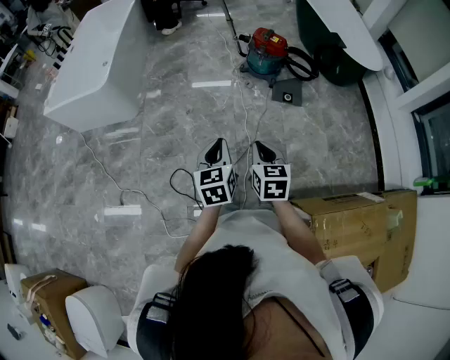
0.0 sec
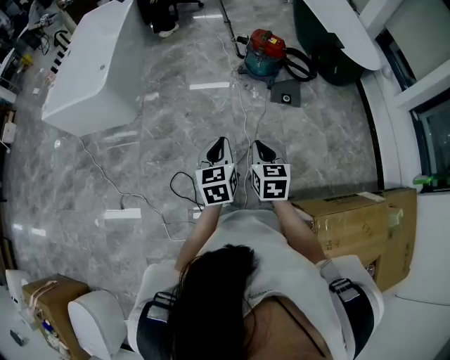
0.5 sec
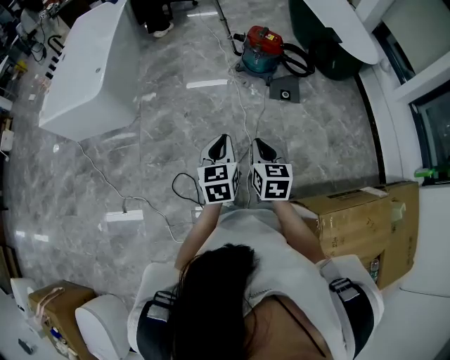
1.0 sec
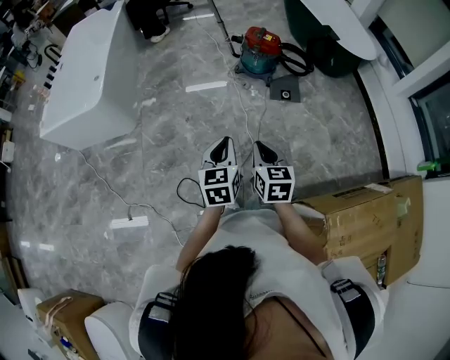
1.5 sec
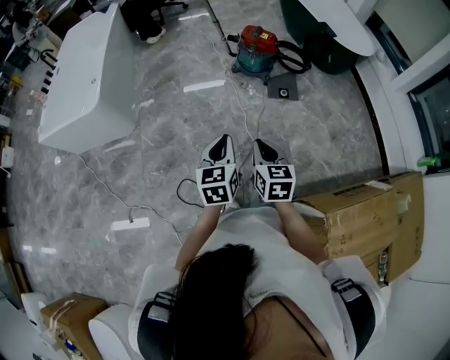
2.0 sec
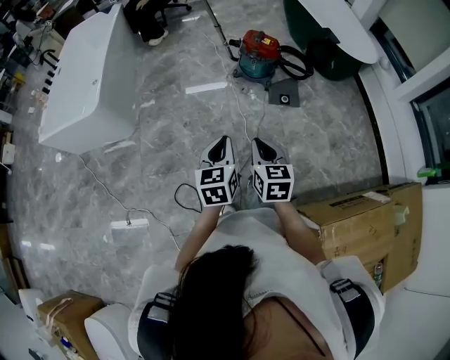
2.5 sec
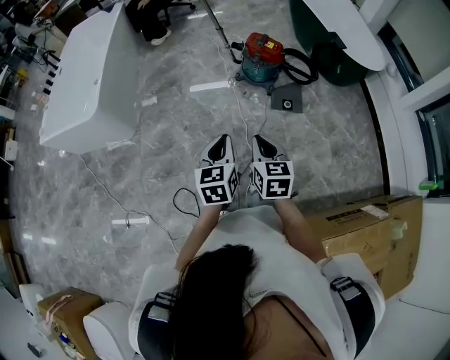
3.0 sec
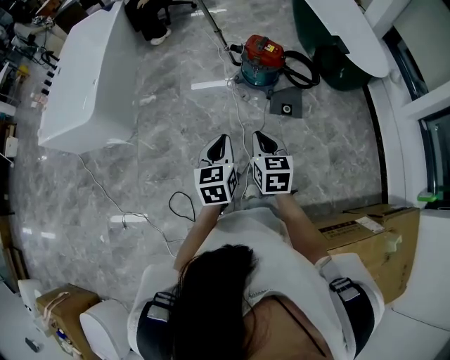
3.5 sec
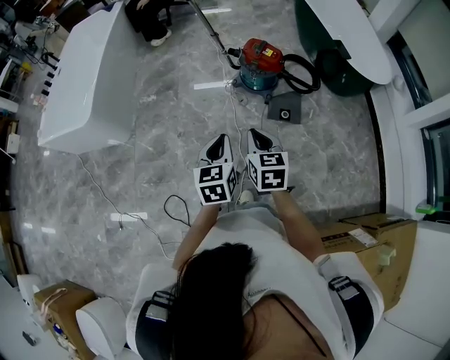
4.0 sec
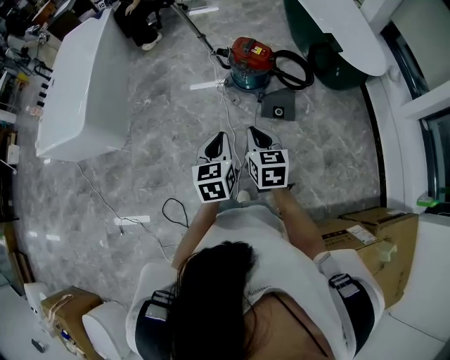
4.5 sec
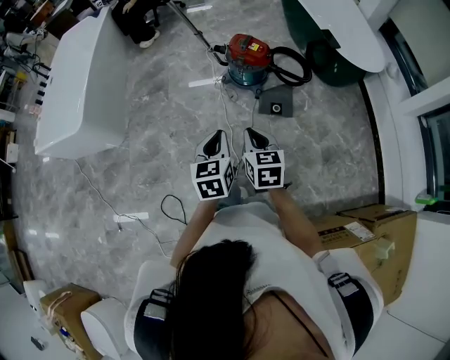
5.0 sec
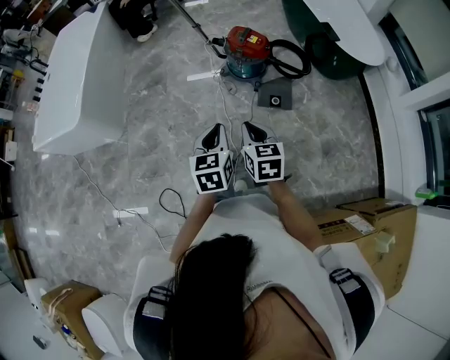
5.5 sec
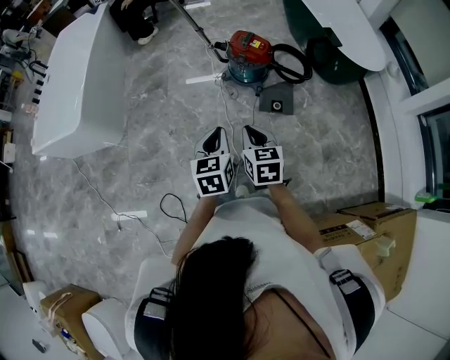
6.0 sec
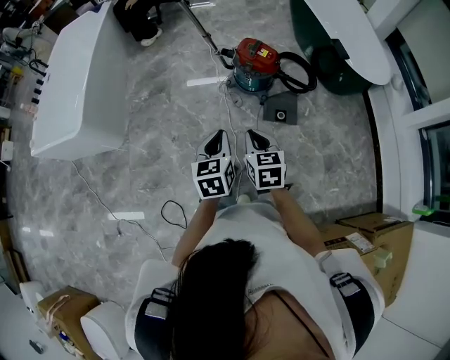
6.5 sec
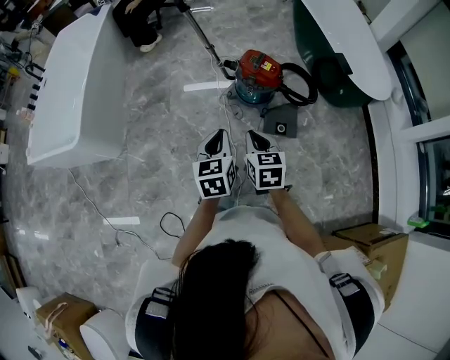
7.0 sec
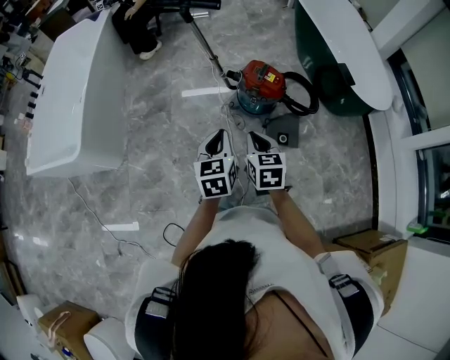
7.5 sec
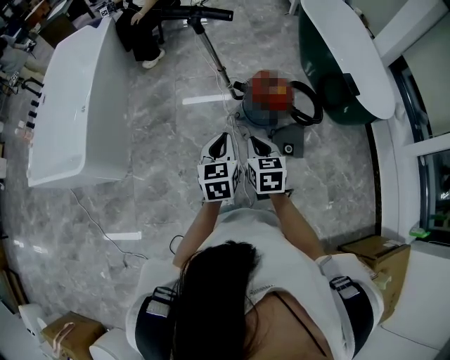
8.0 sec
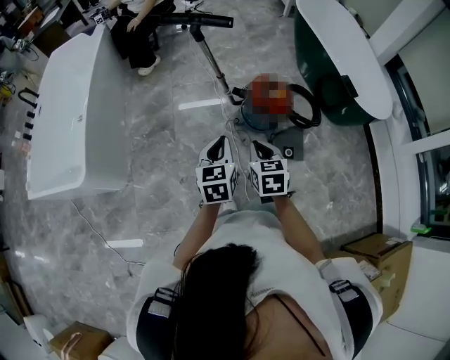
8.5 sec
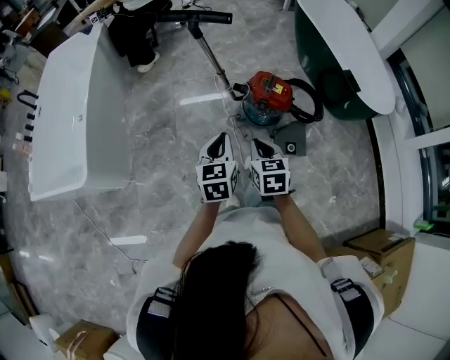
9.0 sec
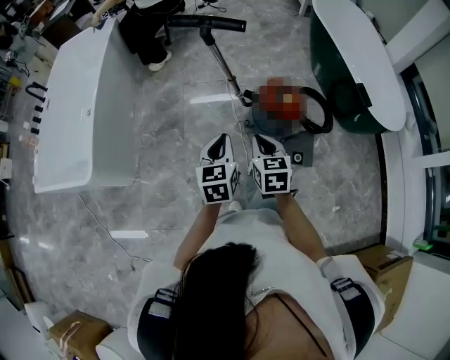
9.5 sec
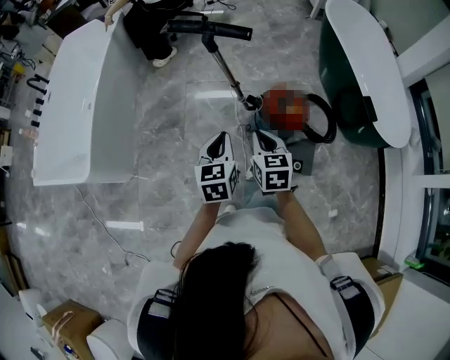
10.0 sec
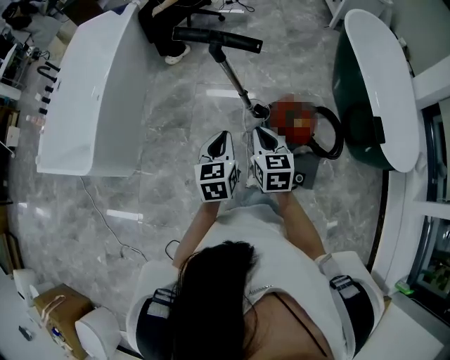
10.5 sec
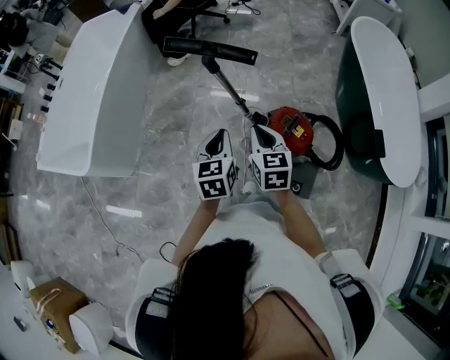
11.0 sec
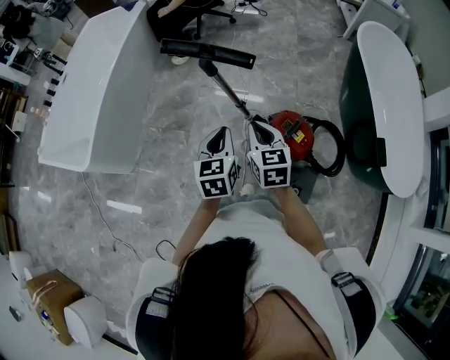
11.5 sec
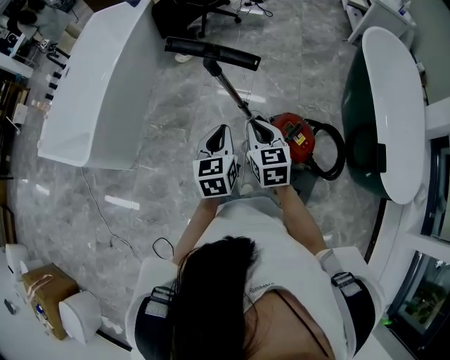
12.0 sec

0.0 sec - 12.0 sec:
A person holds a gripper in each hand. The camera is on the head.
0.0 sec - 2.0 sec: The left gripper is displaced forward by roughly 5 cm. The right gripper changes place by approximately 5 cm.
2.0 sec - 4.0 sec: Both grippers travel together forward and to the right, roughly 25 cm.
4.0 sec - 6.0 sec: There are only small adjustments of the grippers.
6.0 sec - 8.0 sec: The grippers both shift forward and to the left by approximately 30 cm.
8.0 sec - 10.0 sec: The two grippers go roughly 15 cm forward.
10.0 sec - 12.0 sec: The left gripper heads forward and to the right, covering about 15 cm, while the right gripper shifts roughly 15 cm forward.

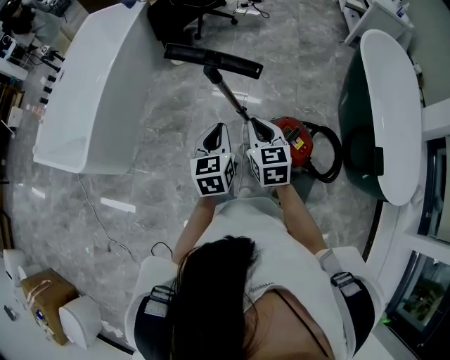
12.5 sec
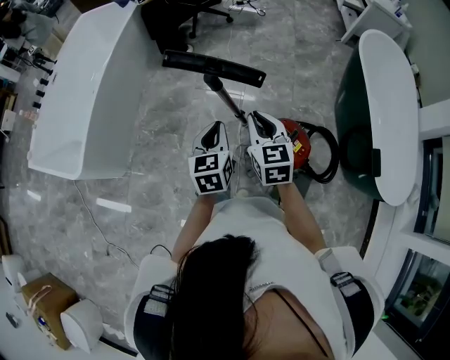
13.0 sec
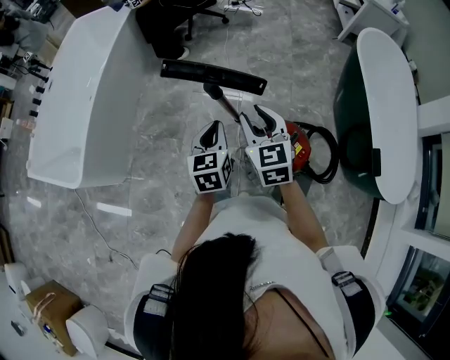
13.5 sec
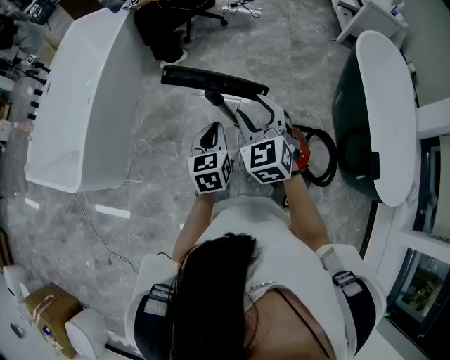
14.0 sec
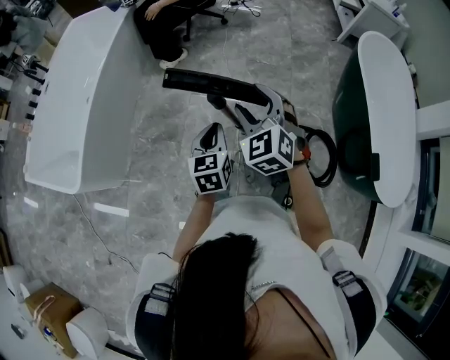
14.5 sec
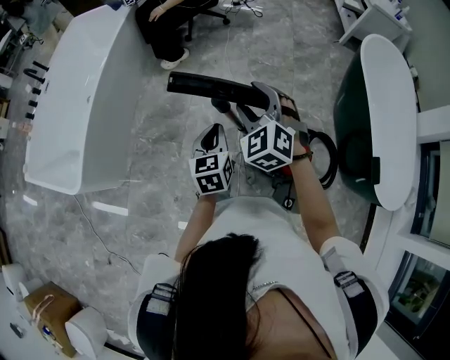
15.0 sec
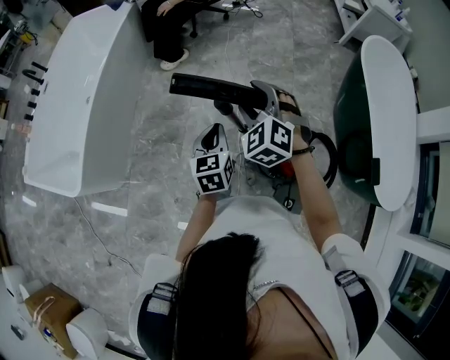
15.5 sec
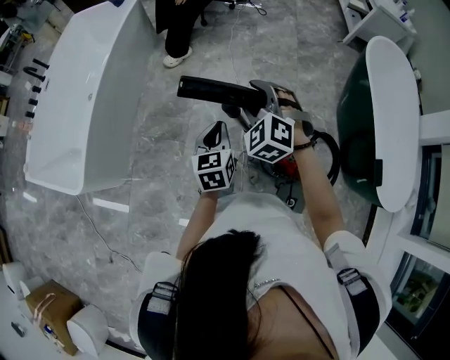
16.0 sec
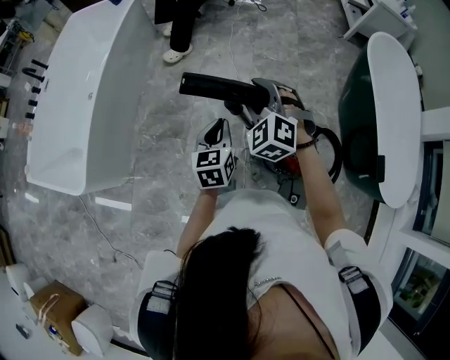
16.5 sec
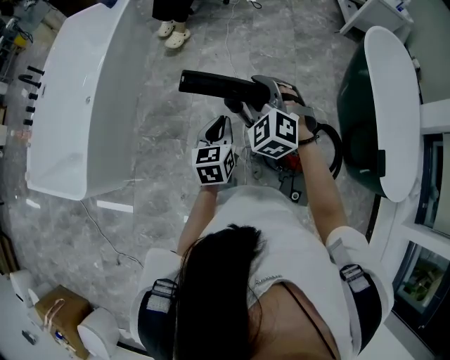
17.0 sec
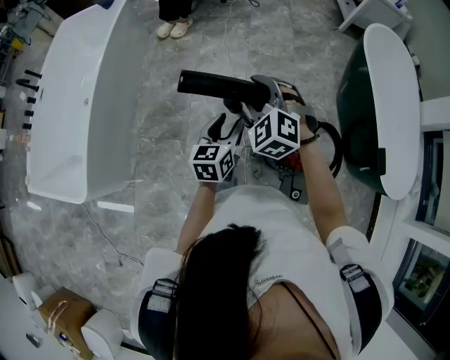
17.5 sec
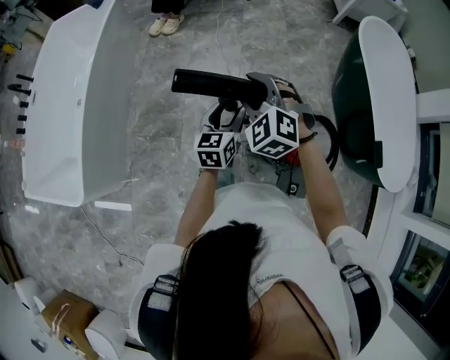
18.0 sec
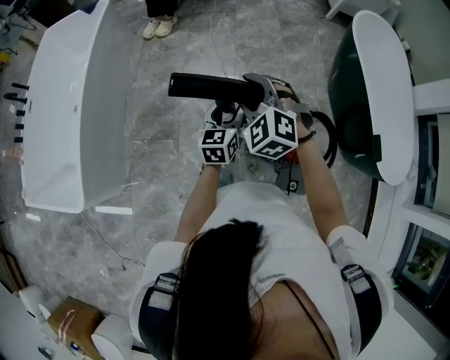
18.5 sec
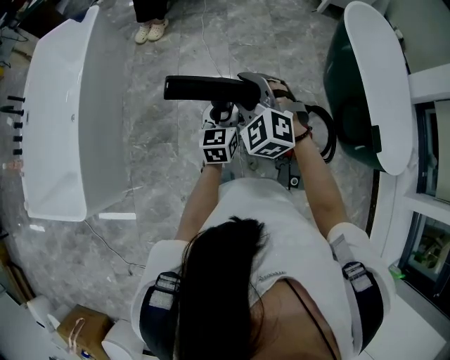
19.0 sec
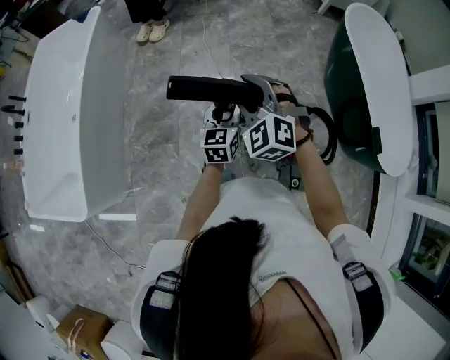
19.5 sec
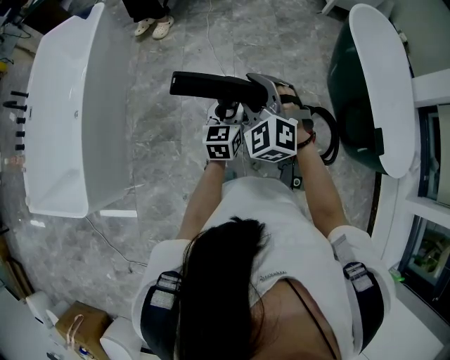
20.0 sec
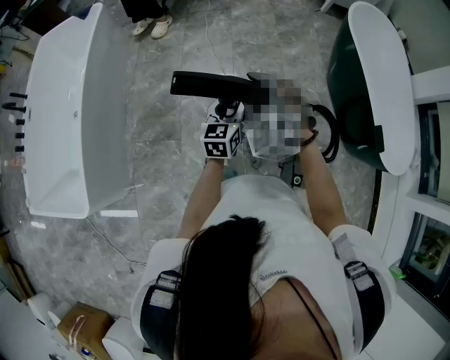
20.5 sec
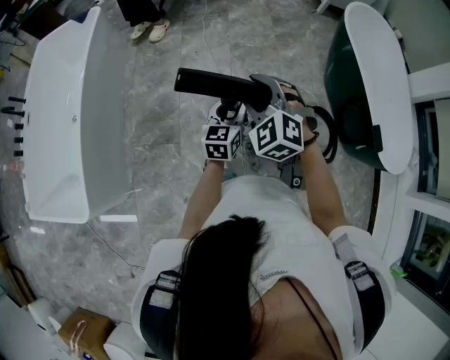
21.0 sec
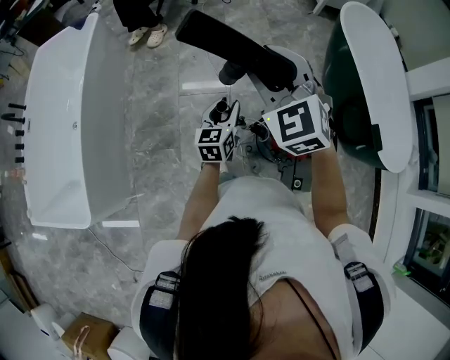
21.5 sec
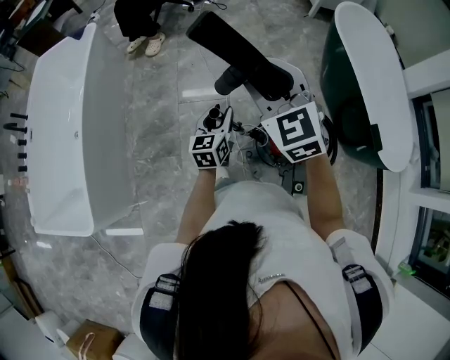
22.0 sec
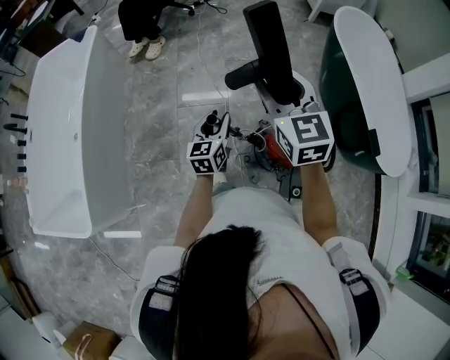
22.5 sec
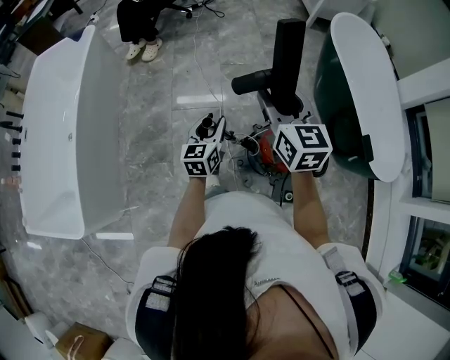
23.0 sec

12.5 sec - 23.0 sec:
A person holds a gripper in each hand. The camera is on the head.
12.5 sec - 14.5 sec: The left gripper is displaced forward by about 10 cm; the right gripper is displaced forward and upward by about 15 cm, changes its angle by about 40 degrees, and opens.
14.5 sec - 16.5 sec: The right gripper travels forward by roughly 5 cm.
16.5 sec - 19.0 sec: The left gripper moves forward and to the right, approximately 10 cm, and opens.
19.0 sec - 21.0 sec: The grippers move only a little.
21.0 sec - 23.0 sec: The right gripper goes some 15 cm to the right and upward, and rotates around the line of its fingers by some 50 degrees, clockwise from behind.

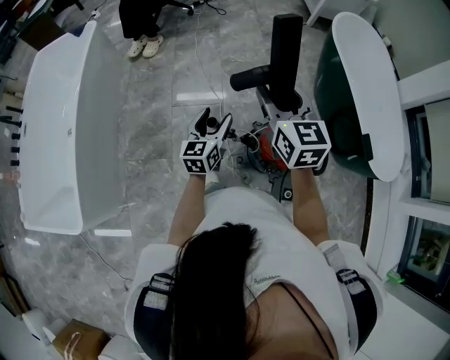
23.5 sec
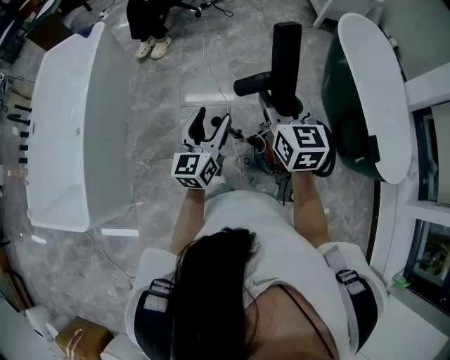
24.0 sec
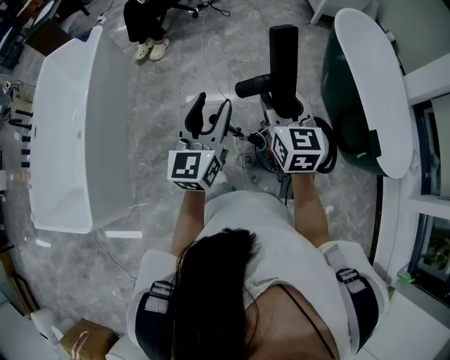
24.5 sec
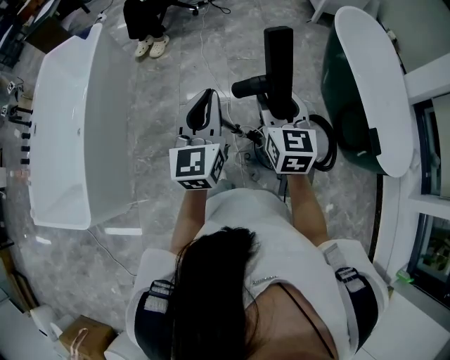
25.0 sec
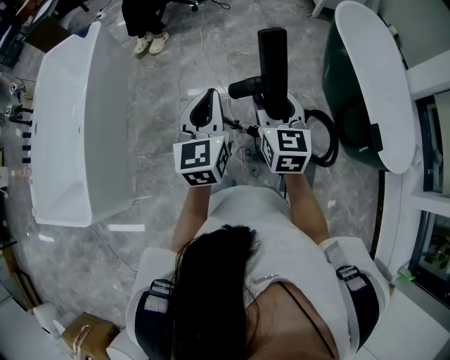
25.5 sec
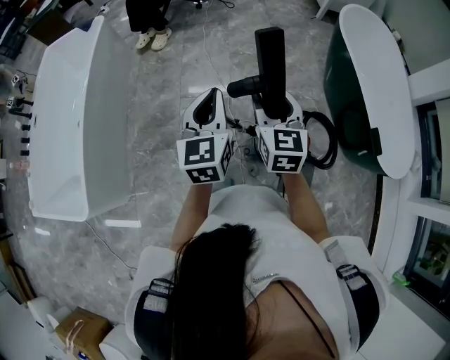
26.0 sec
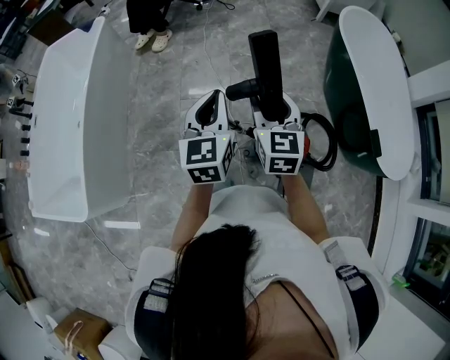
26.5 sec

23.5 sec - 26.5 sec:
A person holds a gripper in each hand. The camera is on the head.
23.5 sec - 25.0 sec: The left gripper goes some 20 cm upward, rotates roughly 20 degrees, and closes its fingers.
25.0 sec - 26.5 sec: The grippers make only small movements.

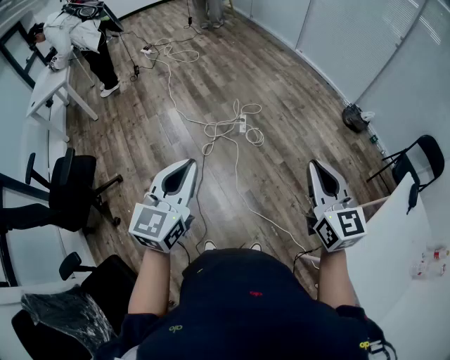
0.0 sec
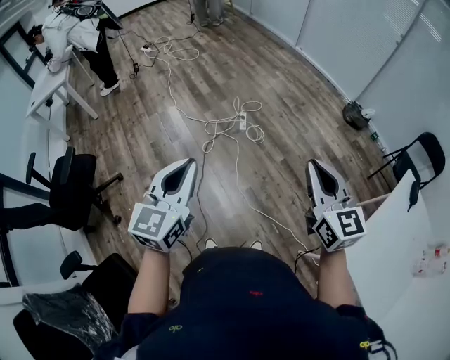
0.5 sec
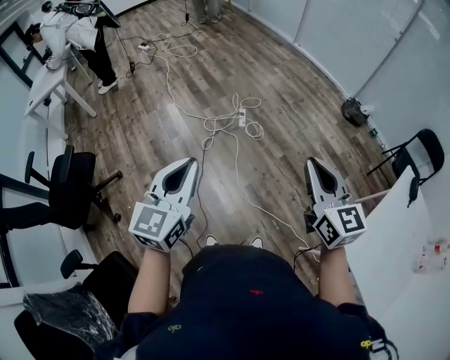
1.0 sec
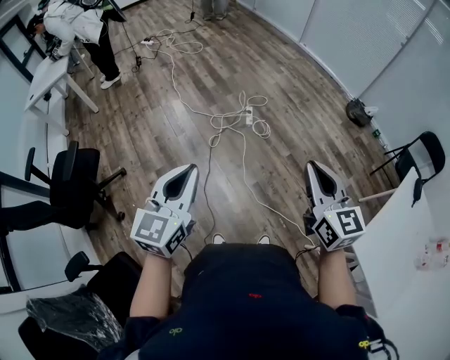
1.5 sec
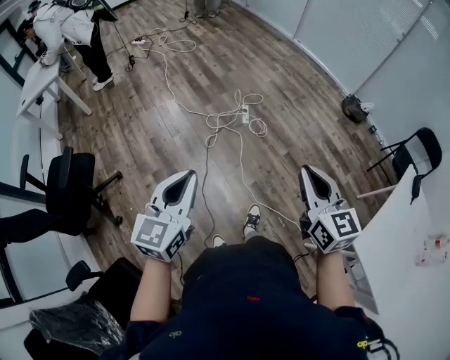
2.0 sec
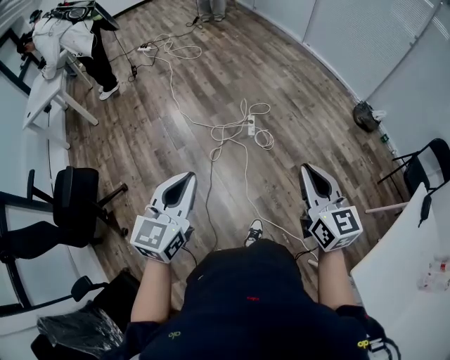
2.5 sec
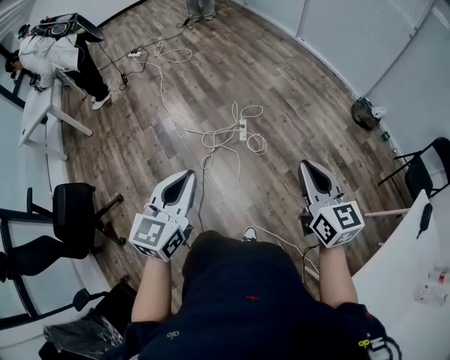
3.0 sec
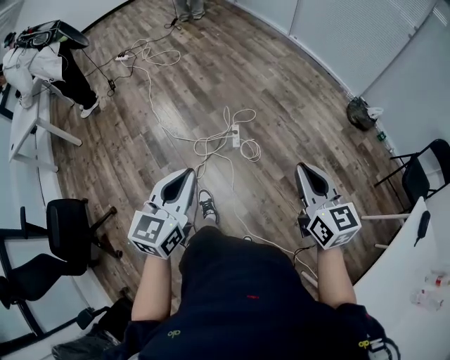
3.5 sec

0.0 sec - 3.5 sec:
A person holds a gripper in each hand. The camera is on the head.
0.0 sec - 2.0 sec: The grippers both shift to the left by some 10 cm.
2.0 sec - 3.5 sec: Both grippers travel together forward and to the right, about 35 cm.
